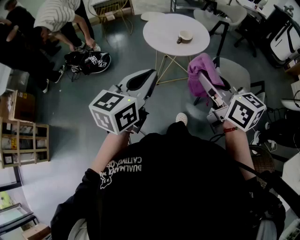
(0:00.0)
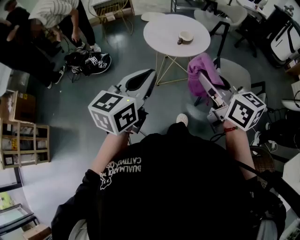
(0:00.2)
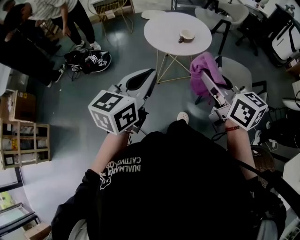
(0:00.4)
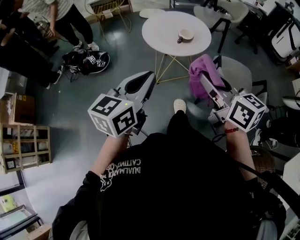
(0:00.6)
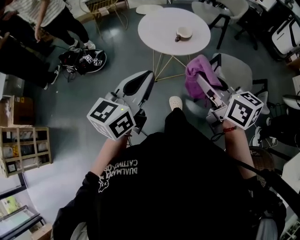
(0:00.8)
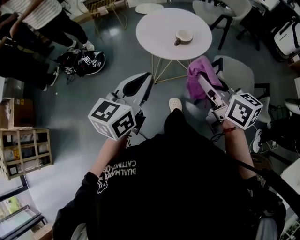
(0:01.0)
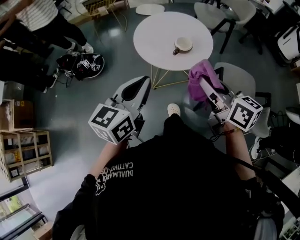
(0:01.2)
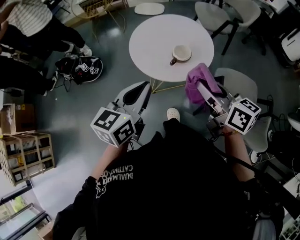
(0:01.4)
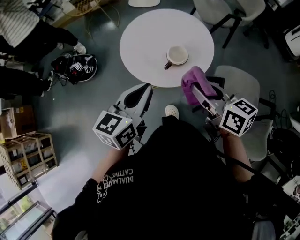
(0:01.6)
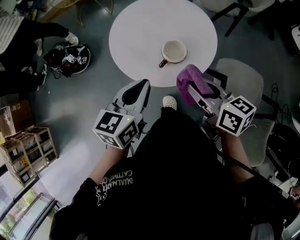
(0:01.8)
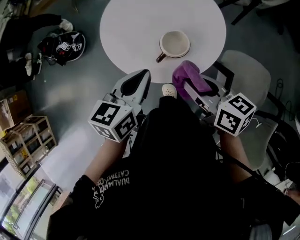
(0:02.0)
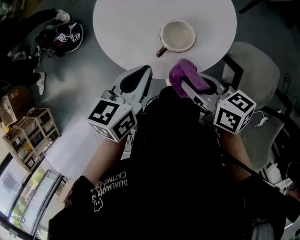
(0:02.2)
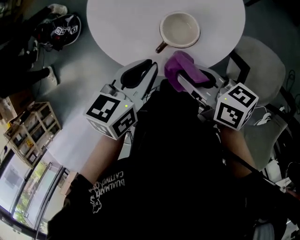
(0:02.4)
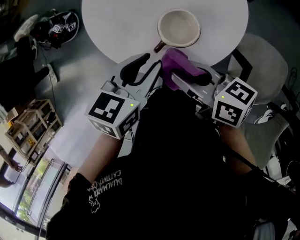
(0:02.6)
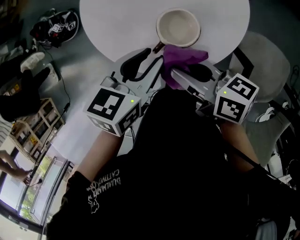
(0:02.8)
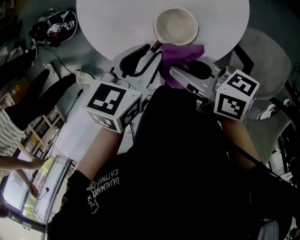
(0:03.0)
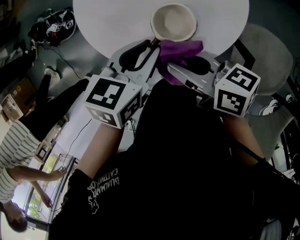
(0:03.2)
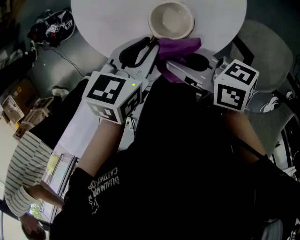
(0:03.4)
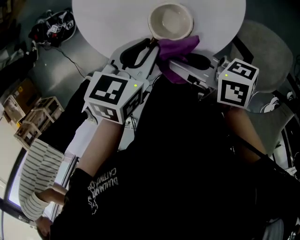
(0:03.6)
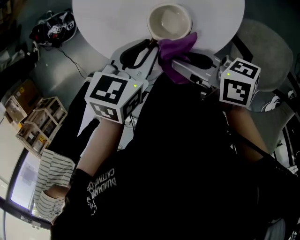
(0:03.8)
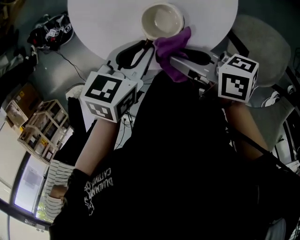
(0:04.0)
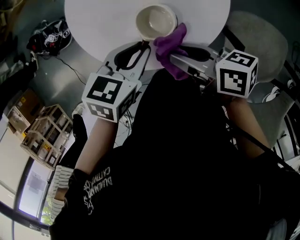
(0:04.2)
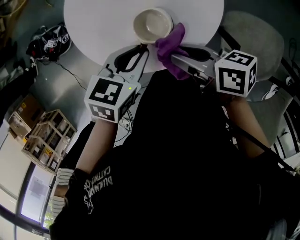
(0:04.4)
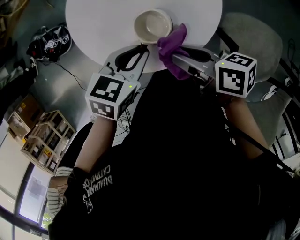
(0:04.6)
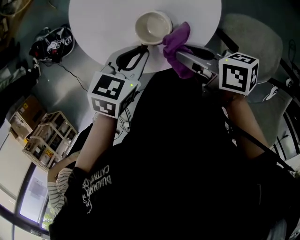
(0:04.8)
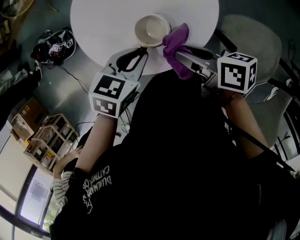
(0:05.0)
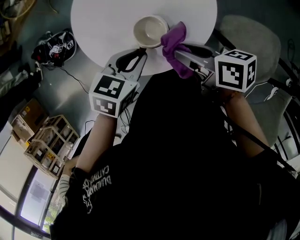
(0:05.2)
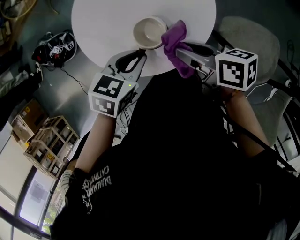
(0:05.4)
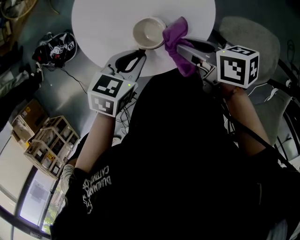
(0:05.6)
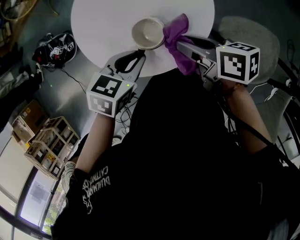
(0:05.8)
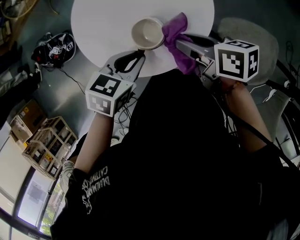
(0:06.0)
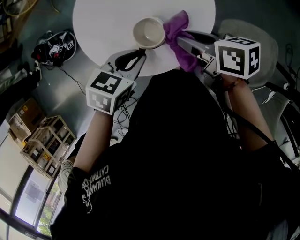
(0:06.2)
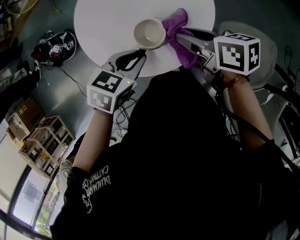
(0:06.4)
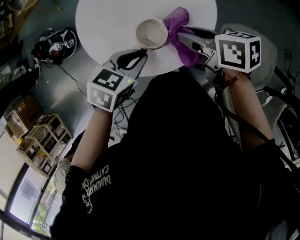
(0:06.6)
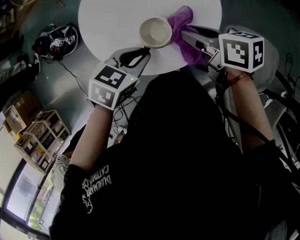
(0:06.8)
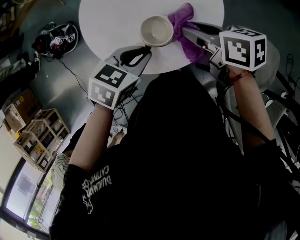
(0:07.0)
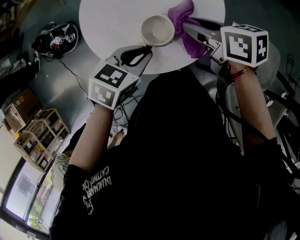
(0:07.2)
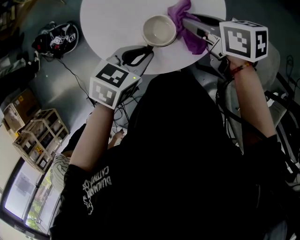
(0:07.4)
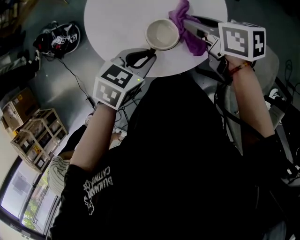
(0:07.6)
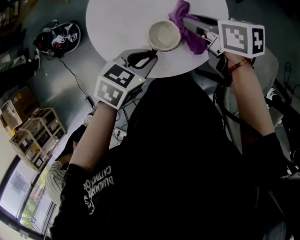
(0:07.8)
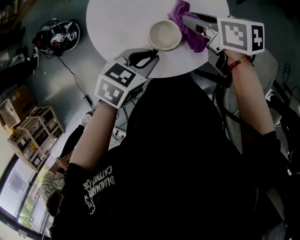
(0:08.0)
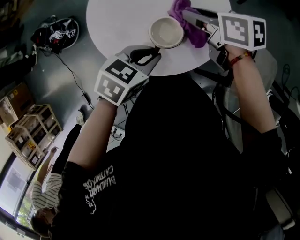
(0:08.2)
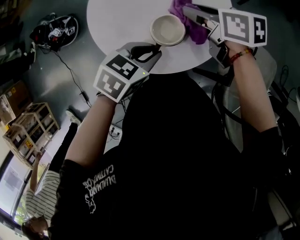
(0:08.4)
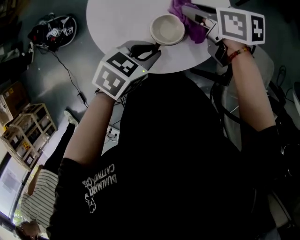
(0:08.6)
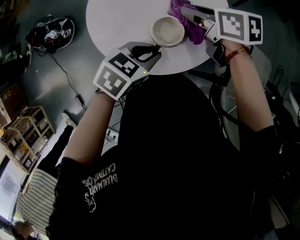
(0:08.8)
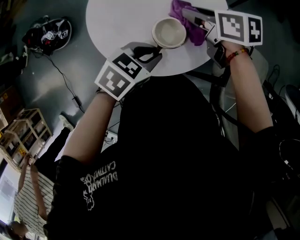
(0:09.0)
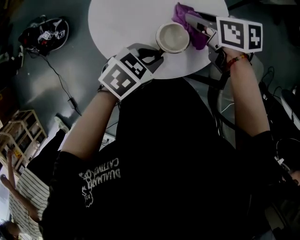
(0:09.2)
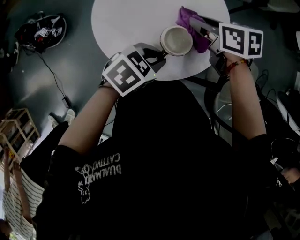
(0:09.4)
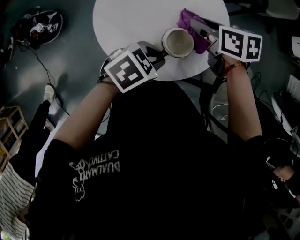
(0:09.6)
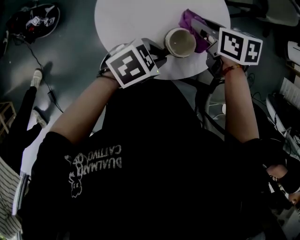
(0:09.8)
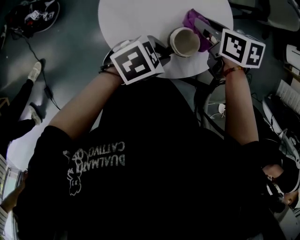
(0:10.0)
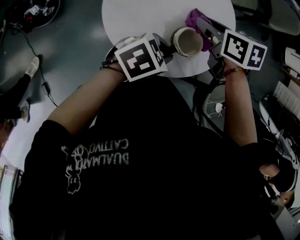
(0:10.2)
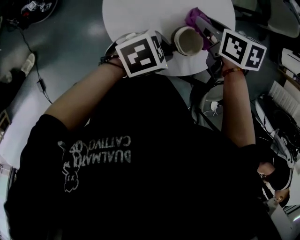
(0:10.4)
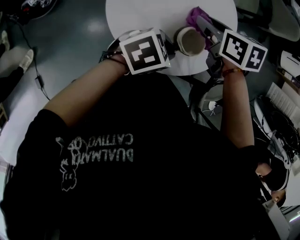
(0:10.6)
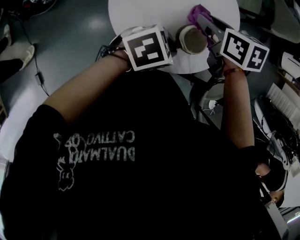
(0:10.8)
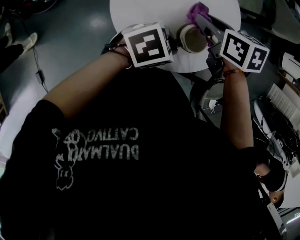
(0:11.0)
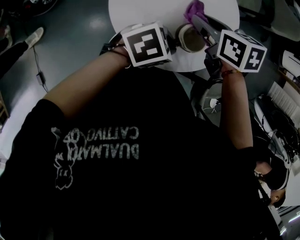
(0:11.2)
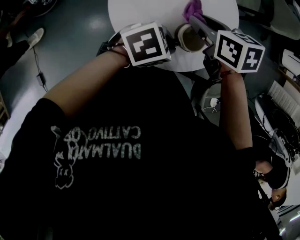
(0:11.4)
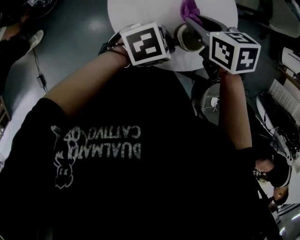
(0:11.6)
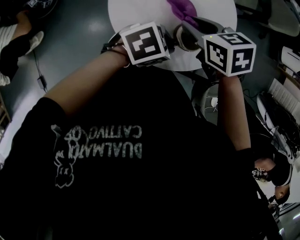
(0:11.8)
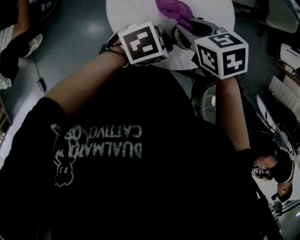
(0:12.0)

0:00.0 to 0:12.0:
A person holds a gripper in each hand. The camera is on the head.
0:00.0 to 0:01.6: The two grippers go approximately 30 cm forward, downward and to the right.
0:01.6 to 0:03.0: The left gripper goes approximately 20 cm downward, to the right and forward, changes its angle by approximately 30 degrees, and opens its fingers; the right gripper goes some 15 cm downward, and swivels roughly 30 degrees.
0:03.0 to 0:04.4: The grippers move only a little.
0:04.4 to 0:06.0: The right gripper ends up approximately 5 cm from where it was.
0:06.0 to 0:07.6: The right gripper changes place by some 5 cm.
0:07.6 to 0:09.0: The grippers make only small movements.
0:09.0 to 0:10.4: There are only small adjustments of the grippers.
0:10.4 to 0:12.0: The right gripper changes place by about 10 cm, and turns by roughly 20 degrees.

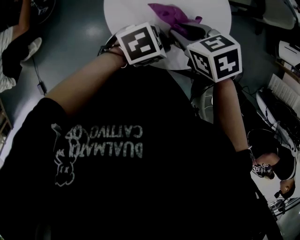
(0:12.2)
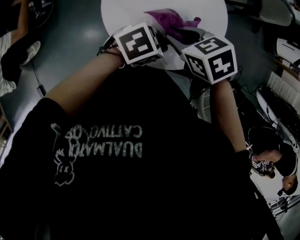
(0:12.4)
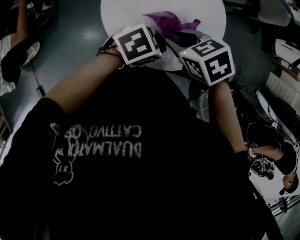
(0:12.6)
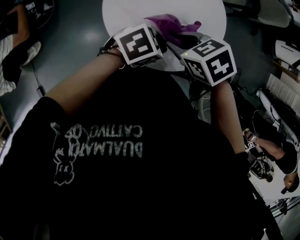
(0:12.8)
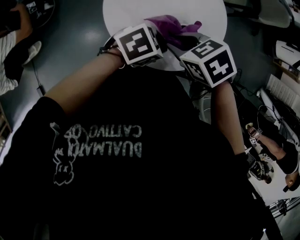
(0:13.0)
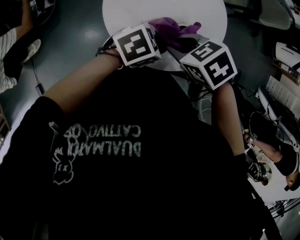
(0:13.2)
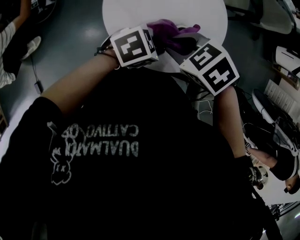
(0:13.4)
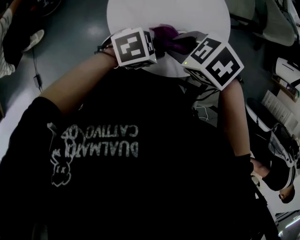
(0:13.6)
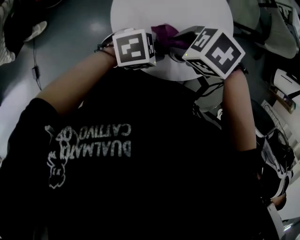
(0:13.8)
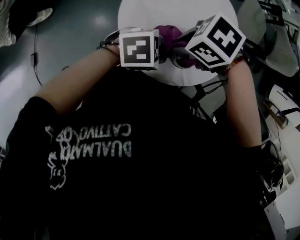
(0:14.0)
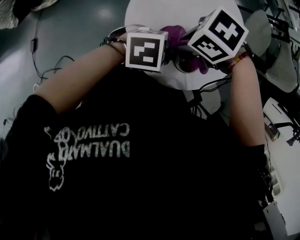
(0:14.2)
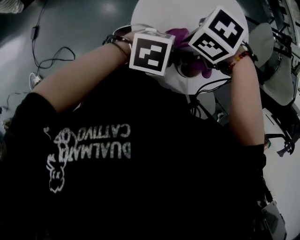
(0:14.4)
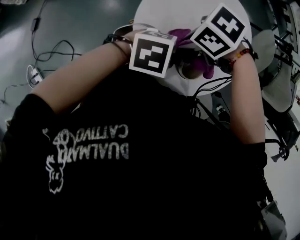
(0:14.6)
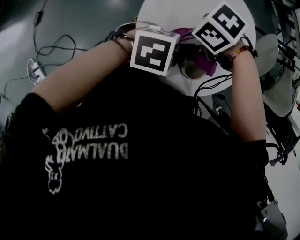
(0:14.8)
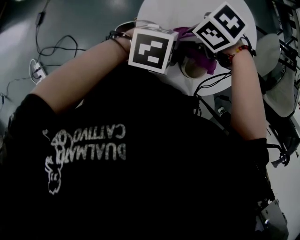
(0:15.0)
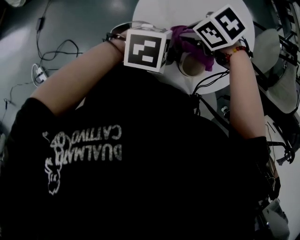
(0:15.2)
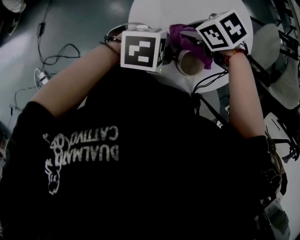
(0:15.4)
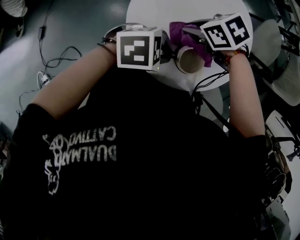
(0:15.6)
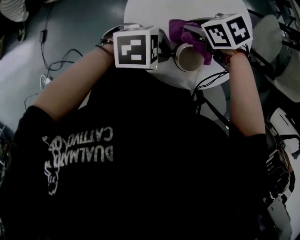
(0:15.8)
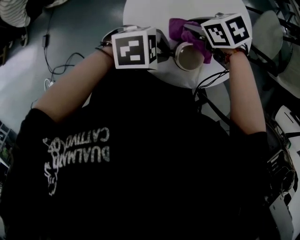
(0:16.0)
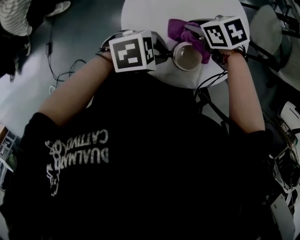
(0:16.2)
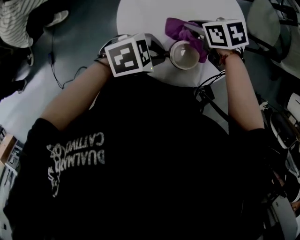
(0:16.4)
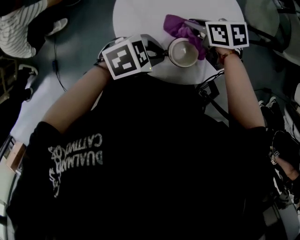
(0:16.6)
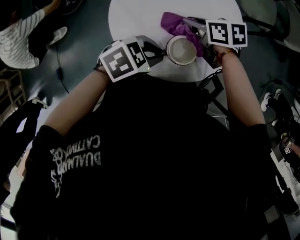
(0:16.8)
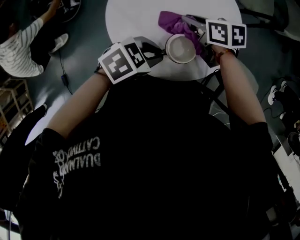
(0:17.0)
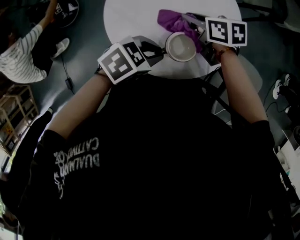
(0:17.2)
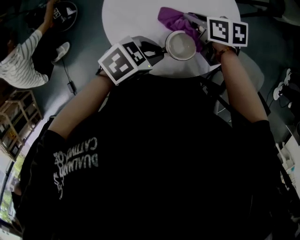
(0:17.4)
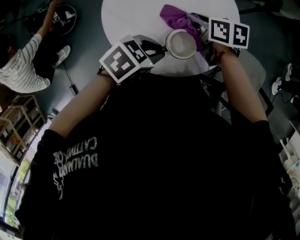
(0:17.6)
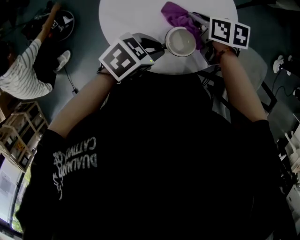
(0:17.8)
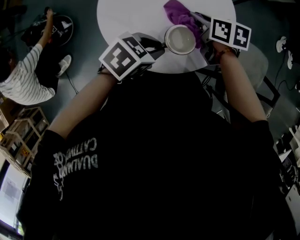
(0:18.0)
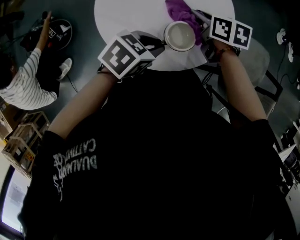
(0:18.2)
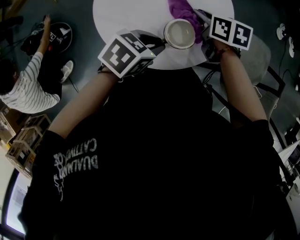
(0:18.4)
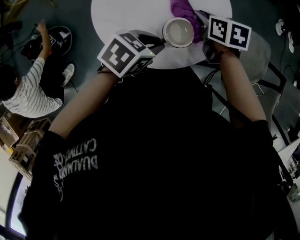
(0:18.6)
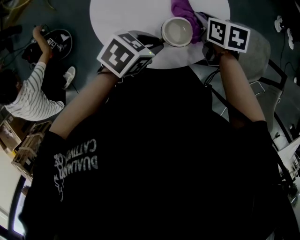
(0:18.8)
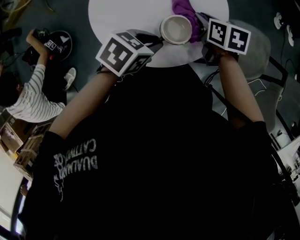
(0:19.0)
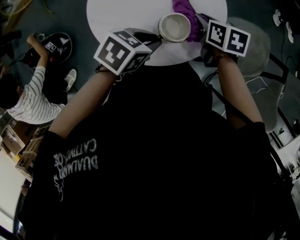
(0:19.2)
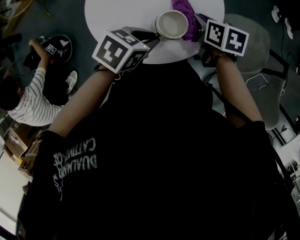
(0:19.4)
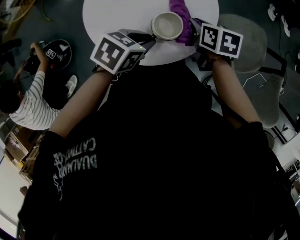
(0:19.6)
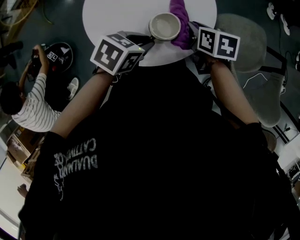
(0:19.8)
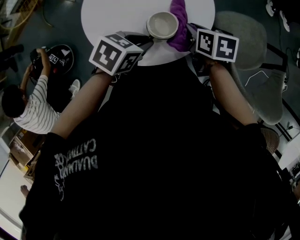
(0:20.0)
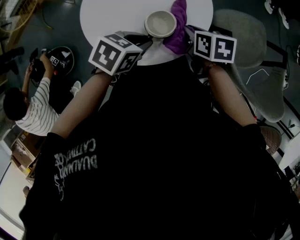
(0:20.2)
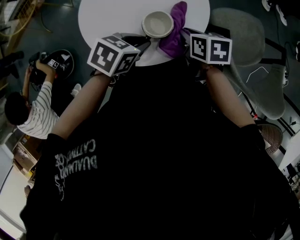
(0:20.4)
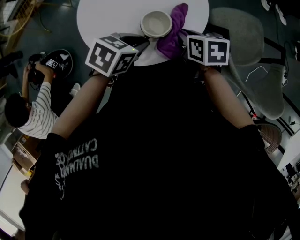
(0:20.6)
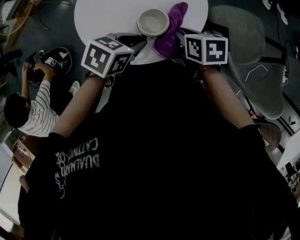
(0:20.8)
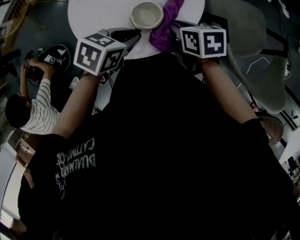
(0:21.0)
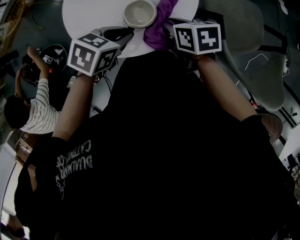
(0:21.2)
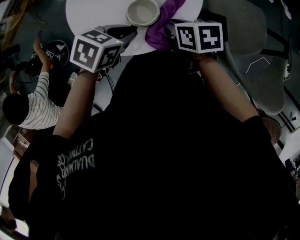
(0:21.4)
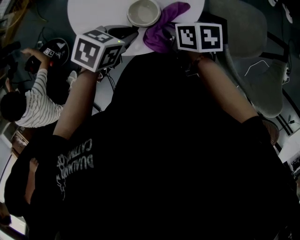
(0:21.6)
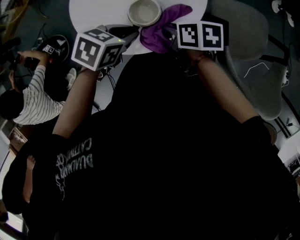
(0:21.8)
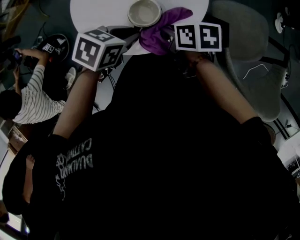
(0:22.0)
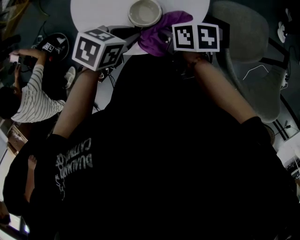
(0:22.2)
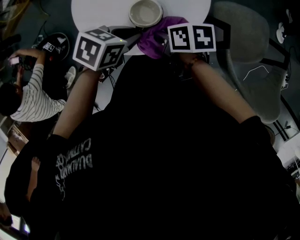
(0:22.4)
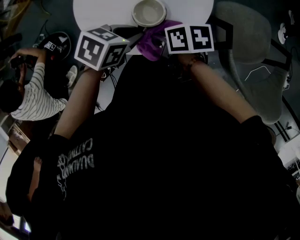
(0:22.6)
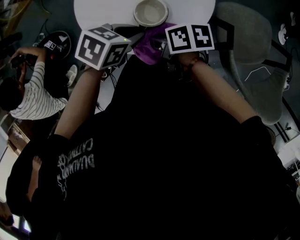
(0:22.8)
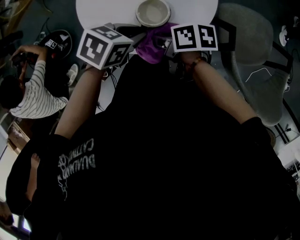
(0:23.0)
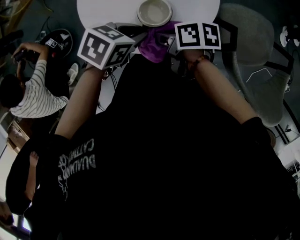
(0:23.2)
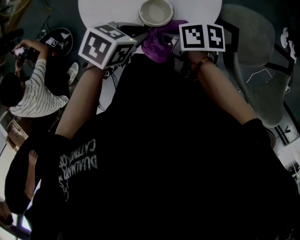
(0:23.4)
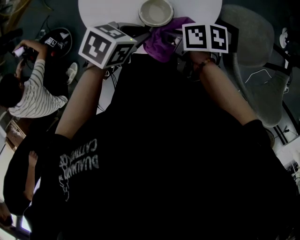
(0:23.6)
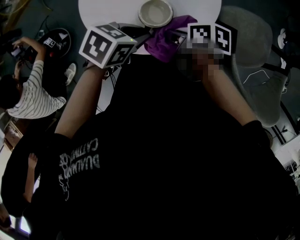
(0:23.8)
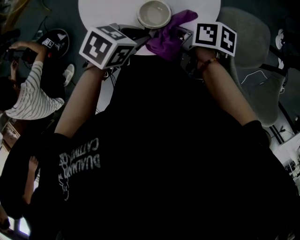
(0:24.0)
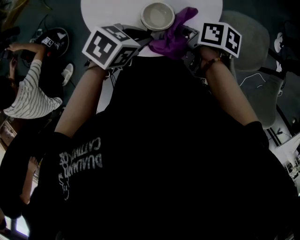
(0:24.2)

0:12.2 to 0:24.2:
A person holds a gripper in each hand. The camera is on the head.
0:12.2 to 0:13.8: The right gripper changes its angle by roughly 40 degrees.
0:13.8 to 0:15.2: The right gripper moves downward, some 10 cm.
0:15.2 to 0:16.6: The right gripper moves about 10 cm, and swivels roughly 60 degrees.
0:16.6 to 0:18.2: The right gripper moves roughly 10 cm, and swivels about 50 degrees.
0:18.2 to 0:19.8: The right gripper ends up some 10 cm from where it was.
0:19.8 to 0:21.2: The right gripper shifts about 5 cm backward.
0:21.2 to 0:22.6: The right gripper changes place by about 5 cm, and swivels approximately 20 degrees.
0:22.6 to 0:24.2: The right gripper moves about 5 cm.
